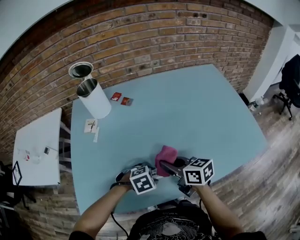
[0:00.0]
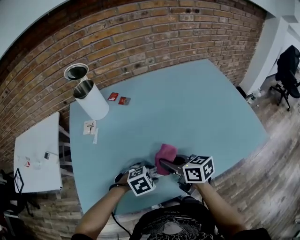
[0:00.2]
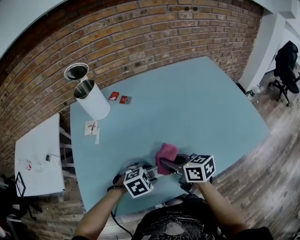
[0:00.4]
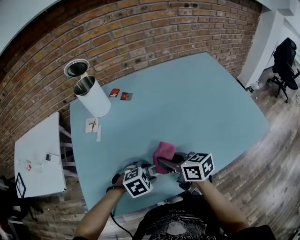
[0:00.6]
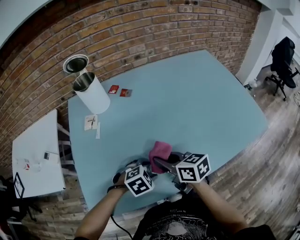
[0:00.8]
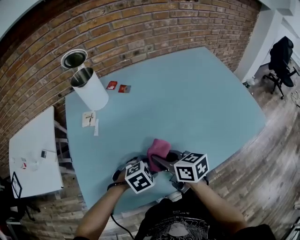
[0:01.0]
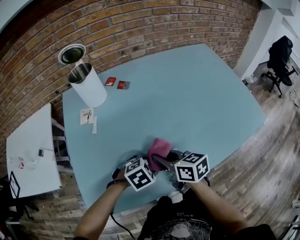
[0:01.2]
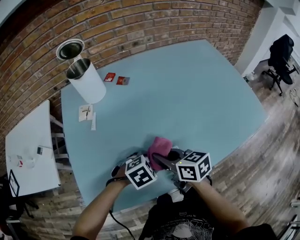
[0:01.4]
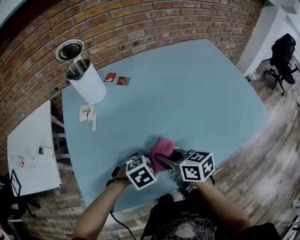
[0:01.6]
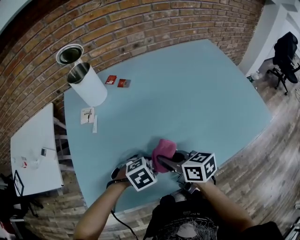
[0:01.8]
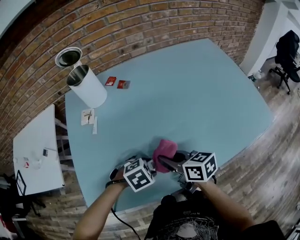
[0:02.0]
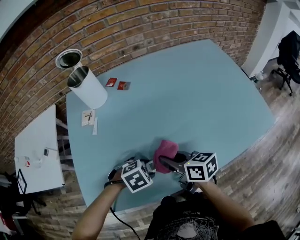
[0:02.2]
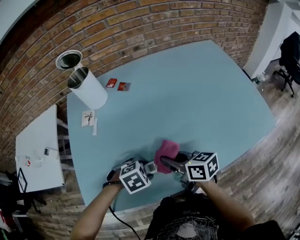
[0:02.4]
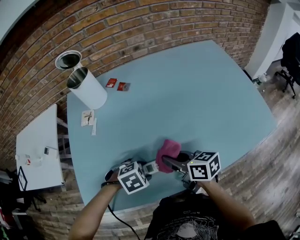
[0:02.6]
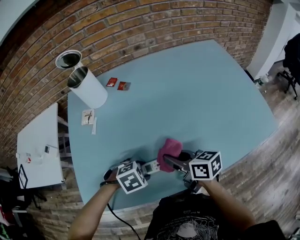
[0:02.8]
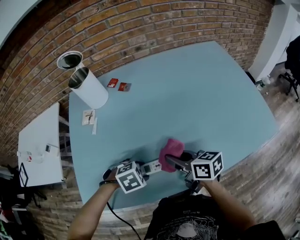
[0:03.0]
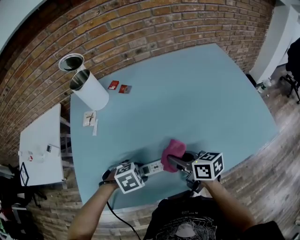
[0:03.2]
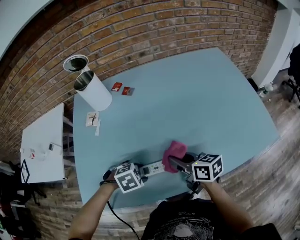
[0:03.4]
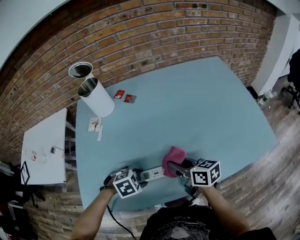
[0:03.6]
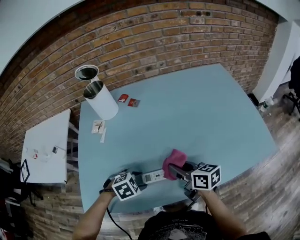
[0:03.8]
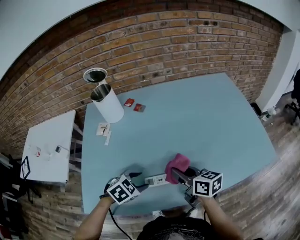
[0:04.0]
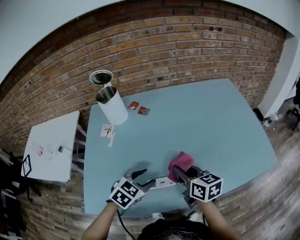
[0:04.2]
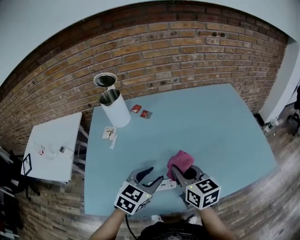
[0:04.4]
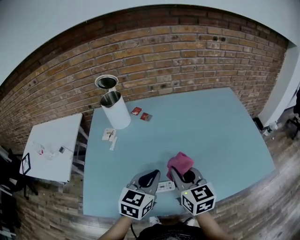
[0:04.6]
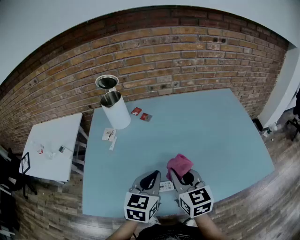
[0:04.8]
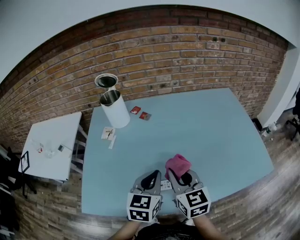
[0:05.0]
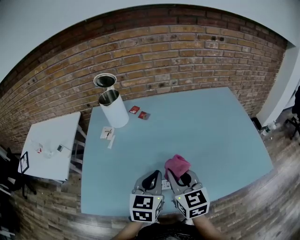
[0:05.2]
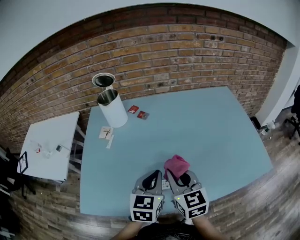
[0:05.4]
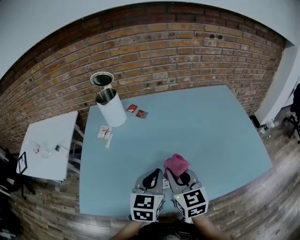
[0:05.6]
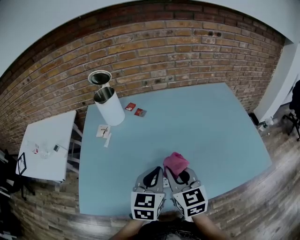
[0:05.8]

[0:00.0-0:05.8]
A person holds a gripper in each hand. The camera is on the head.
0:00.0 to 0:01.4: The left gripper ends up about 5 cm from where it was. The right gripper moves approximately 10 cm.
0:01.4 to 0:02.8: The right gripper moves roughly 10 cm.
0:02.8 to 0:04.4: The right gripper heads upward, covering some 10 cm, and changes its angle by roughly 30 degrees. The left gripper travels upward by some 15 cm, and tips its fingers upward by about 40 degrees.
0:04.4 to 0:05.8: The left gripper rotates some 20 degrees, and closes its fingers.

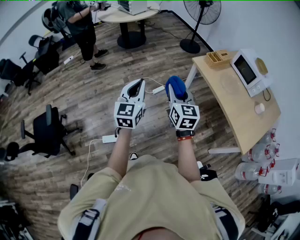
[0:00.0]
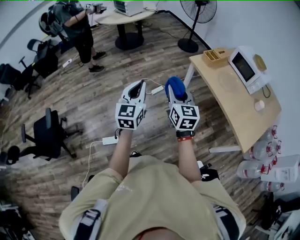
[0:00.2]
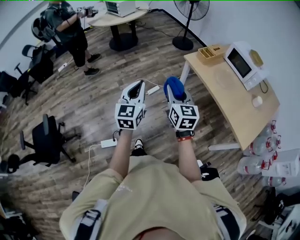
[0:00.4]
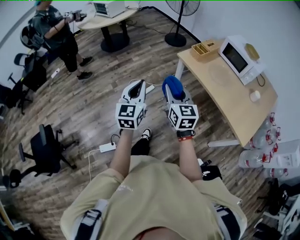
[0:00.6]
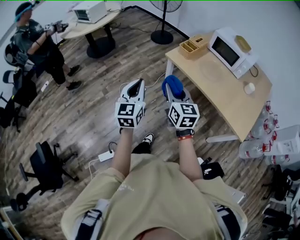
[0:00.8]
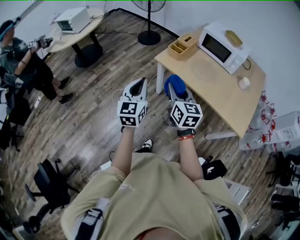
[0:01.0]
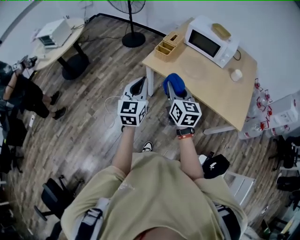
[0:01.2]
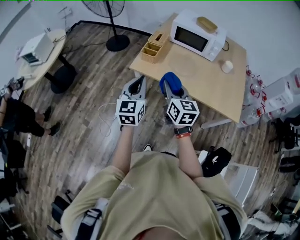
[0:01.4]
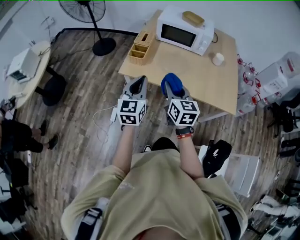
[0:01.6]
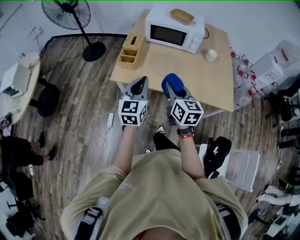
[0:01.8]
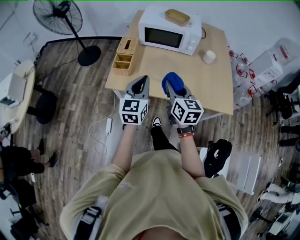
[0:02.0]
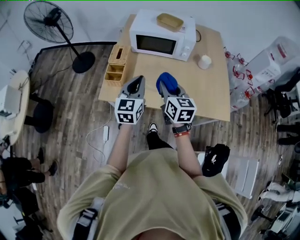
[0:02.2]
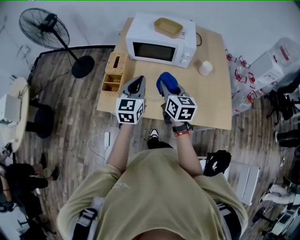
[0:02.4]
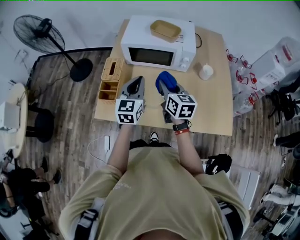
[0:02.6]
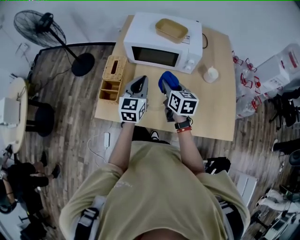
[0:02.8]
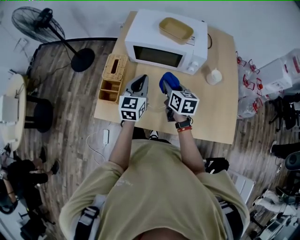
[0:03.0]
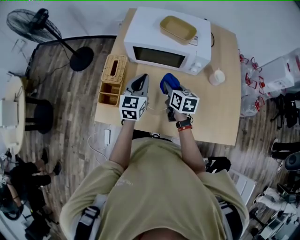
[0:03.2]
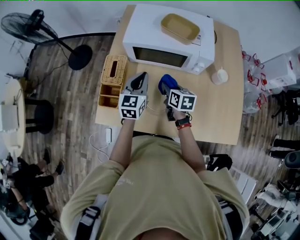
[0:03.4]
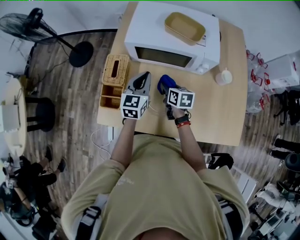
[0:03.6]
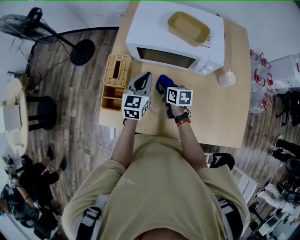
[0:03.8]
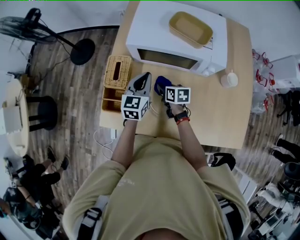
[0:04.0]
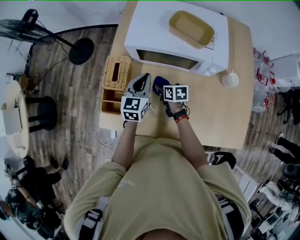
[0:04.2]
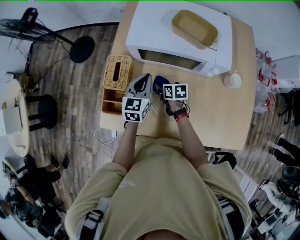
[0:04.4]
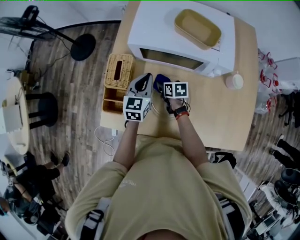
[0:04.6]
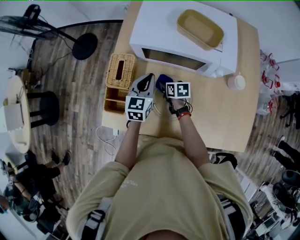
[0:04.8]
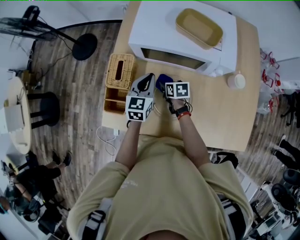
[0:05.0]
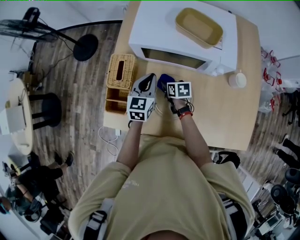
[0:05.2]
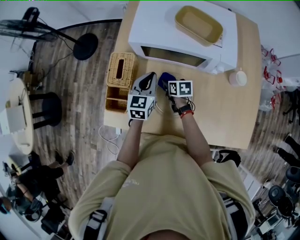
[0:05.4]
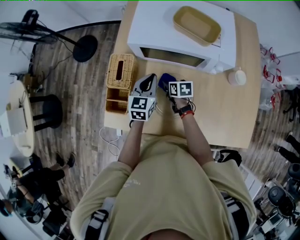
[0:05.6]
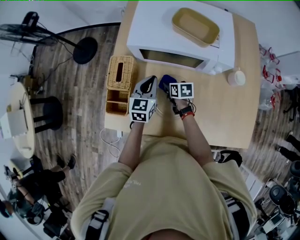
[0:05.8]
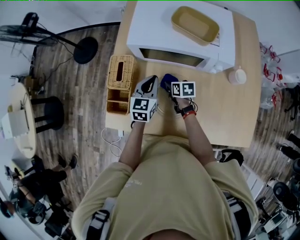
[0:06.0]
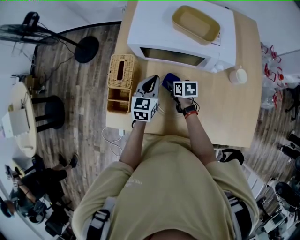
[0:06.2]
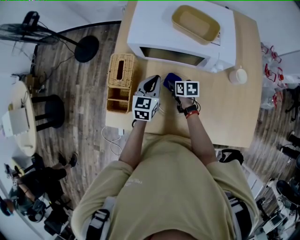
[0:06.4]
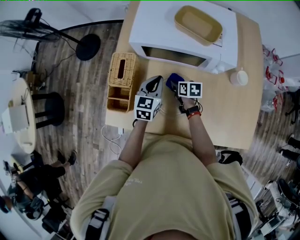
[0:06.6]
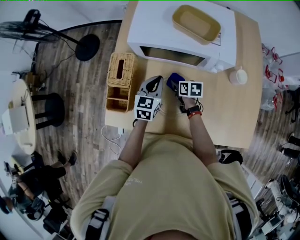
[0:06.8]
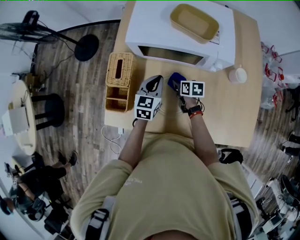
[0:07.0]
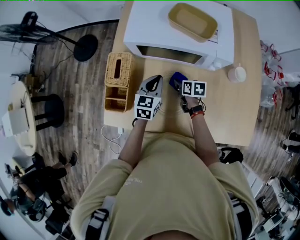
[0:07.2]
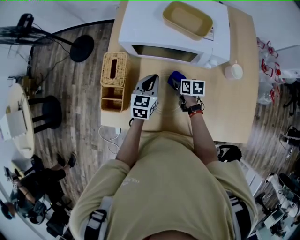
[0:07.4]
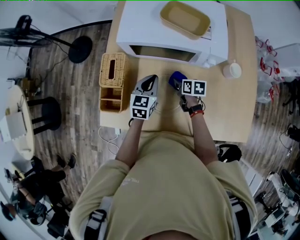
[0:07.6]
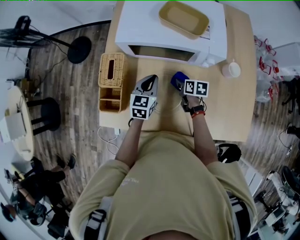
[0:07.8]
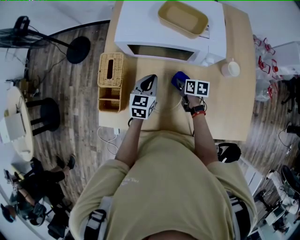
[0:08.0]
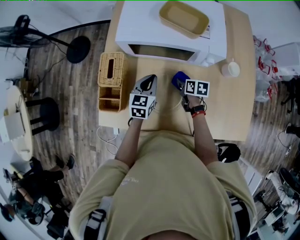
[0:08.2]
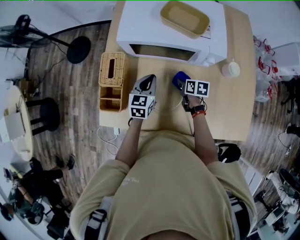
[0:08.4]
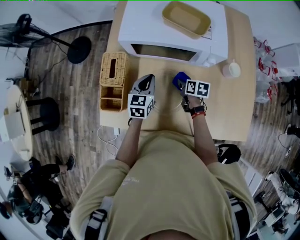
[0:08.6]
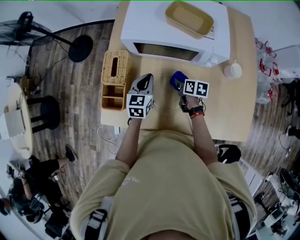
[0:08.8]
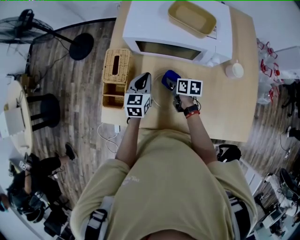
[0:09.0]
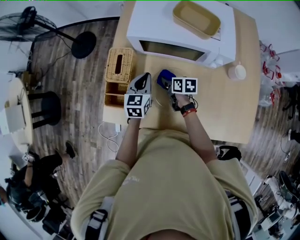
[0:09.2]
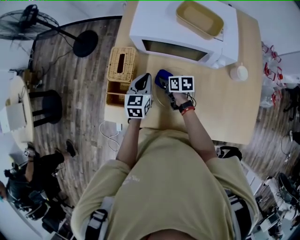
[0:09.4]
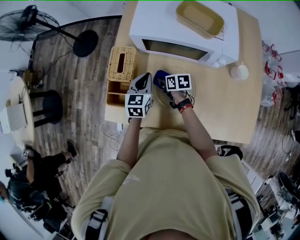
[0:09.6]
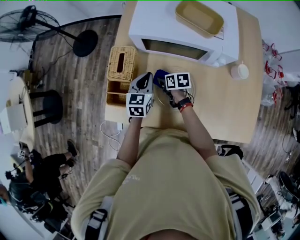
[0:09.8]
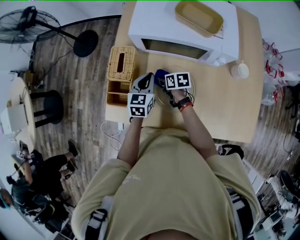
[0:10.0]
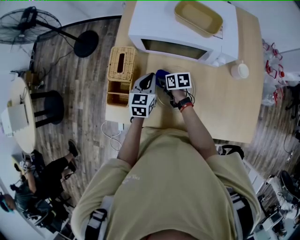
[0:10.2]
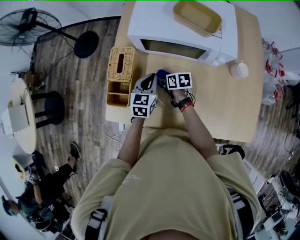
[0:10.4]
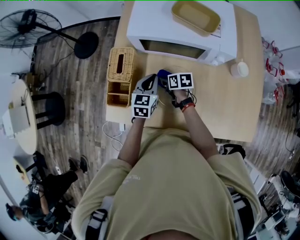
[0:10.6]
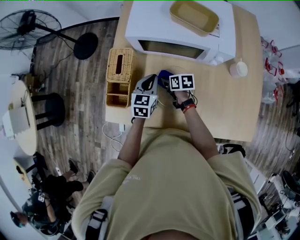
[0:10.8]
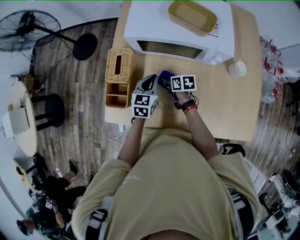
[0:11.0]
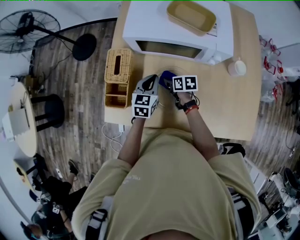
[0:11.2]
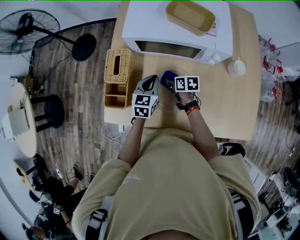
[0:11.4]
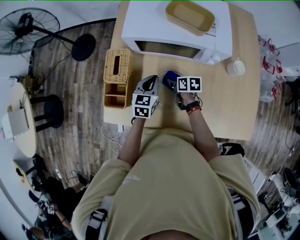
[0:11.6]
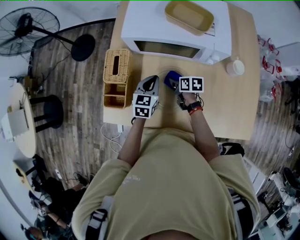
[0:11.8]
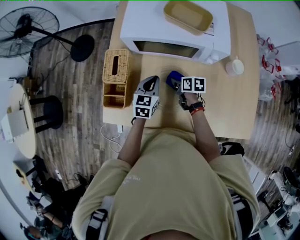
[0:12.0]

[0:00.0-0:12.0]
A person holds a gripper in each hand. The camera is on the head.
0:00.0 to 0:01.6: The right gripper changes place by roughly 40 cm, and rotates about 50 degrees. Meanwhile the left gripper moves roughly 50 cm, and rotates about 50 degrees.
0:01.6 to 0:03.0: The two grippers travel together, forward, about 40 cm.
0:03.0 to 0:04.4: The left gripper moves forward and downward, roughly 15 cm. Meanwhile the right gripper goes approximately 25 cm downward and forward, and changes its angle by approximately 30 degrees.
0:04.4 to 0:06.0: The grippers stay close to where they were, moving slightly.
0:06.0 to 0:07.6: The right gripper is displaced to the right by approximately 10 cm.
0:07.6 to 0:09.0: The two grippers go roughly 5 cm to the left.
0:09.0 to 0:10.4: The right gripper heads to the left, covering roughly 5 cm.
0:10.4 to 0:12.0: The right gripper moves to the right, some 10 cm.

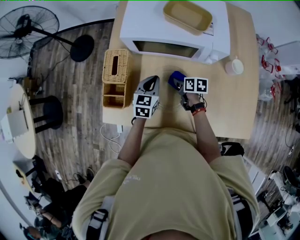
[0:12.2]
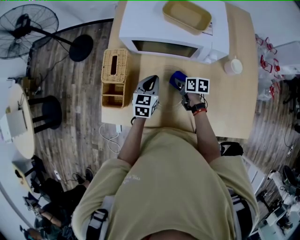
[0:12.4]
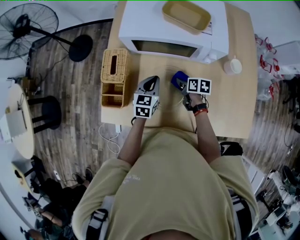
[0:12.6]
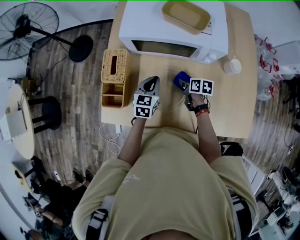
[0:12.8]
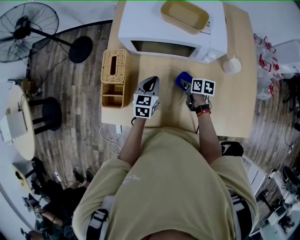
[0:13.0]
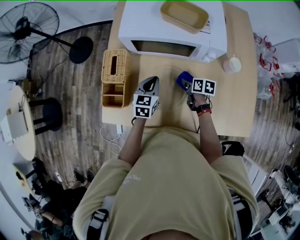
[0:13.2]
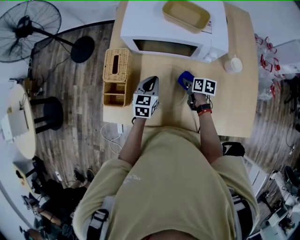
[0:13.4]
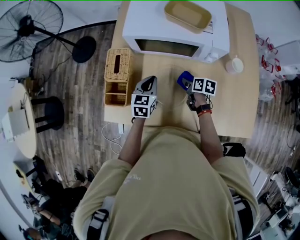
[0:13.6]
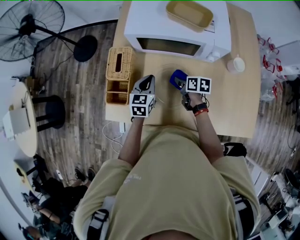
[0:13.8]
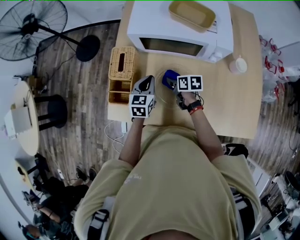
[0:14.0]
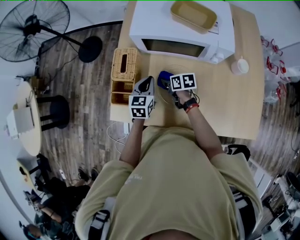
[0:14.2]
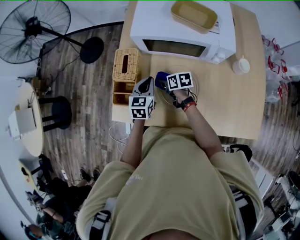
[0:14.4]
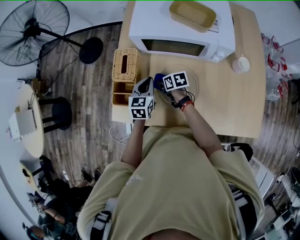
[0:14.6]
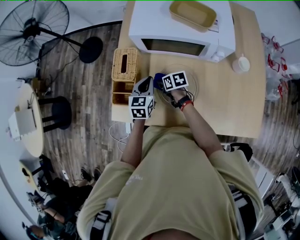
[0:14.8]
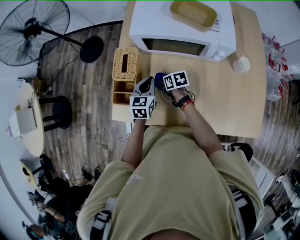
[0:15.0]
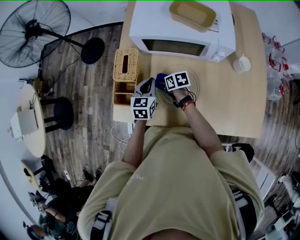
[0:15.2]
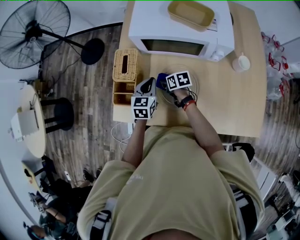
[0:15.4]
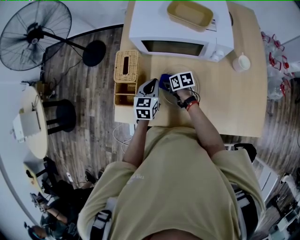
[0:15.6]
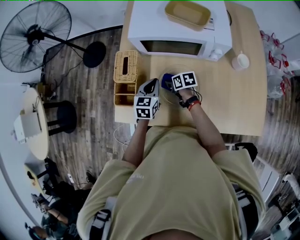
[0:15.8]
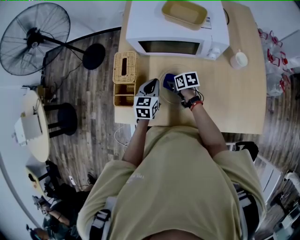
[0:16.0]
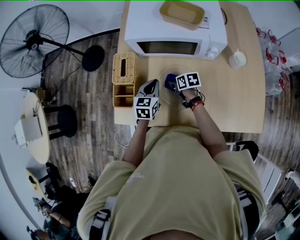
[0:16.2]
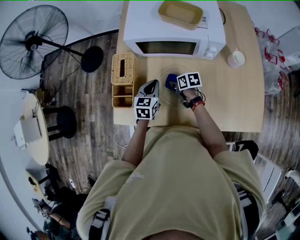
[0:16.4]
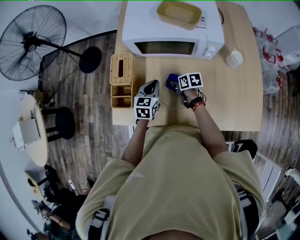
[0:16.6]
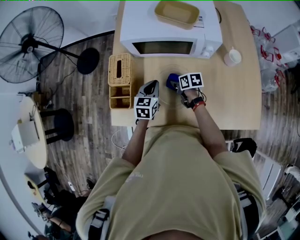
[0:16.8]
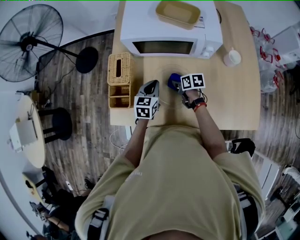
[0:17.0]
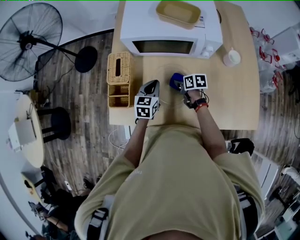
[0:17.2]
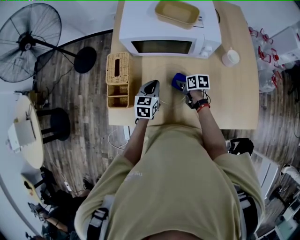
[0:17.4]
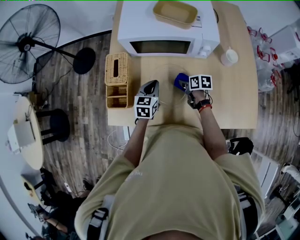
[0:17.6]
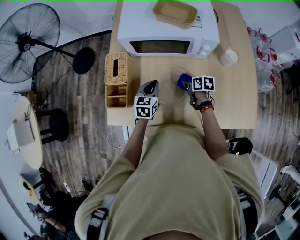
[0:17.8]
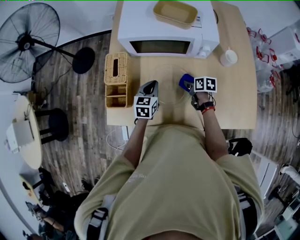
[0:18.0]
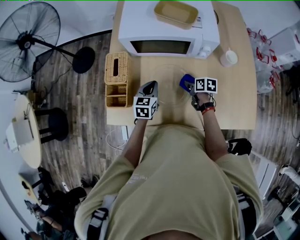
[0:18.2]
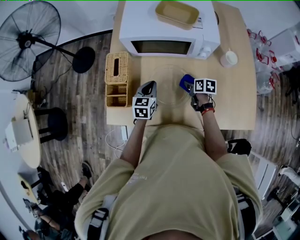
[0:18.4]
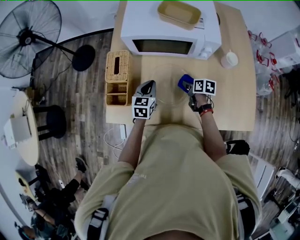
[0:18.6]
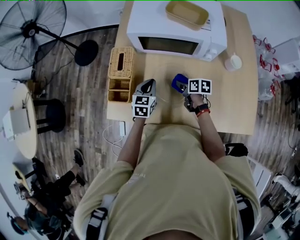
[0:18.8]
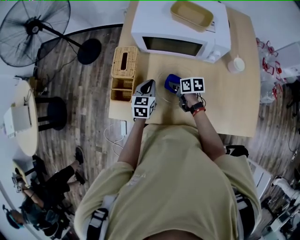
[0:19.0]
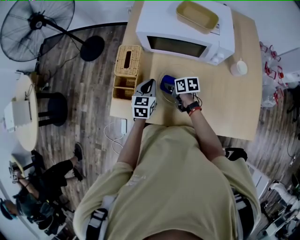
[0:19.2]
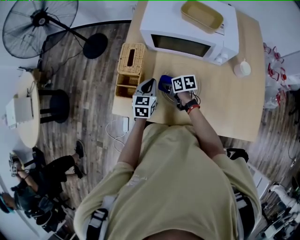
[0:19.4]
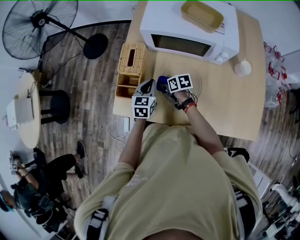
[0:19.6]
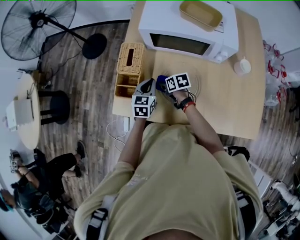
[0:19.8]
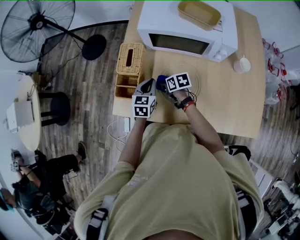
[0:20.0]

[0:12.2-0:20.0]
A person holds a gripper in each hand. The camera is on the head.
0:12.2 to 0:13.8: There are only small adjustments of the grippers.
0:13.8 to 0:15.4: The right gripper goes some 10 cm to the left.
0:15.4 to 0:16.8: The right gripper shifts approximately 10 cm to the right.
0:16.8 to 0:18.4: The right gripper travels to the right by some 10 cm.
0:18.4 to 0:20.0: The left gripper goes approximately 5 cm to the left; the right gripper shifts roughly 20 cm to the left, and rotates some 30 degrees.
